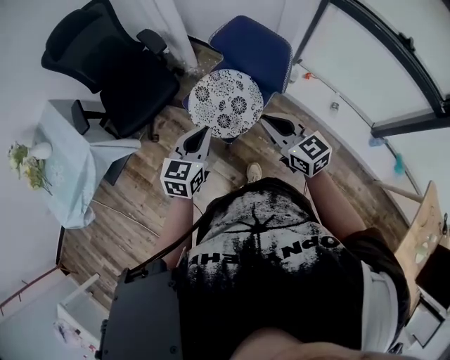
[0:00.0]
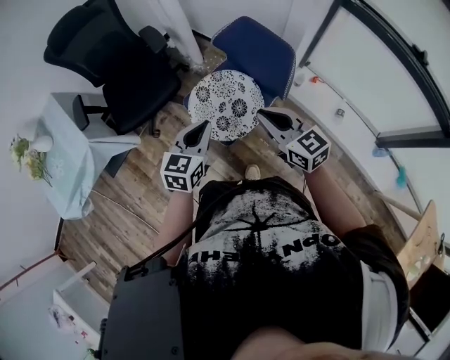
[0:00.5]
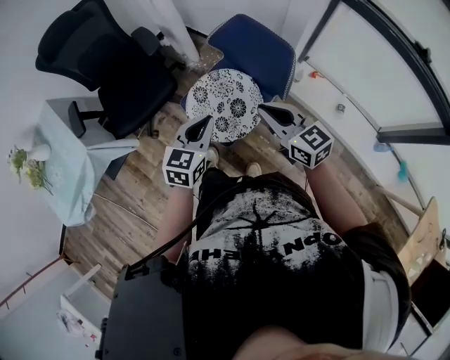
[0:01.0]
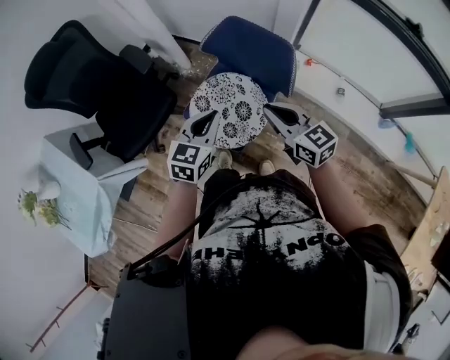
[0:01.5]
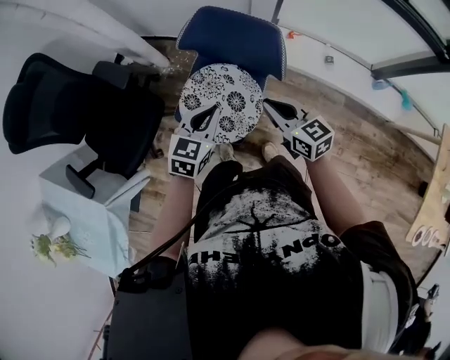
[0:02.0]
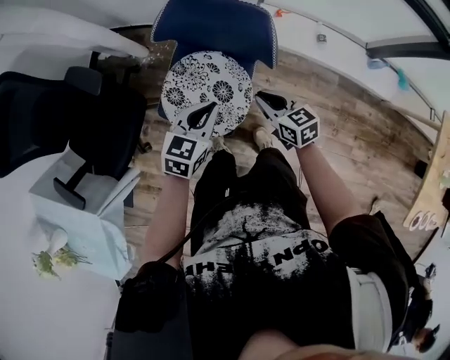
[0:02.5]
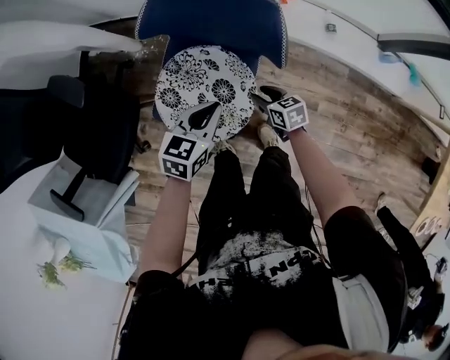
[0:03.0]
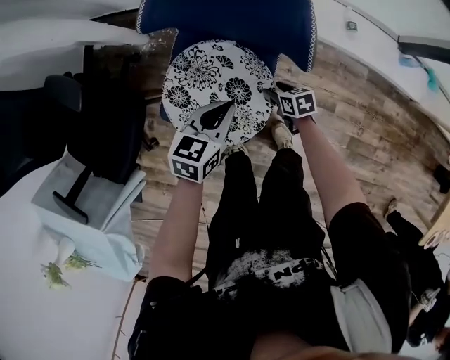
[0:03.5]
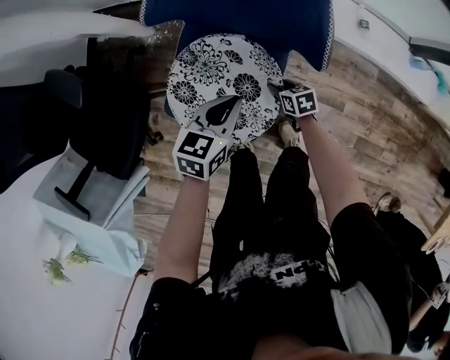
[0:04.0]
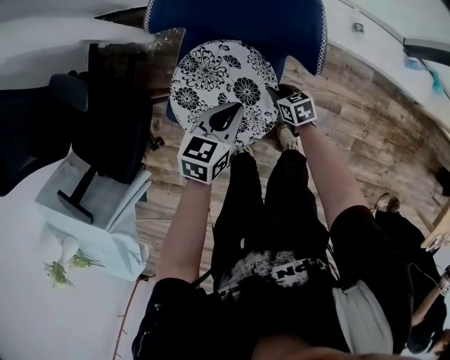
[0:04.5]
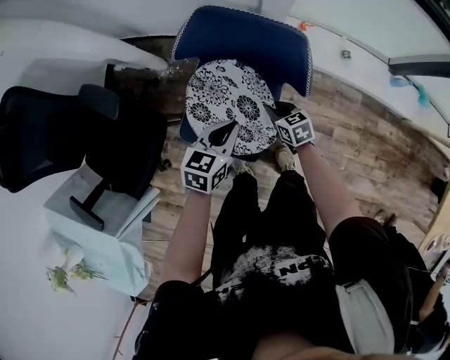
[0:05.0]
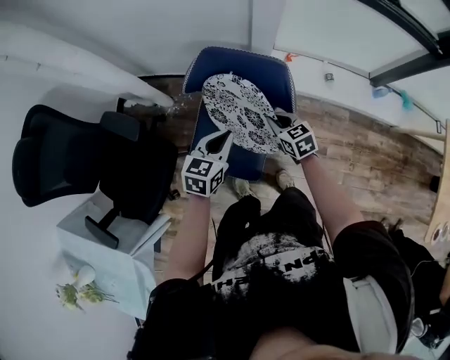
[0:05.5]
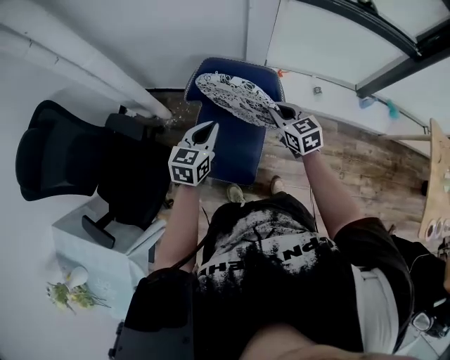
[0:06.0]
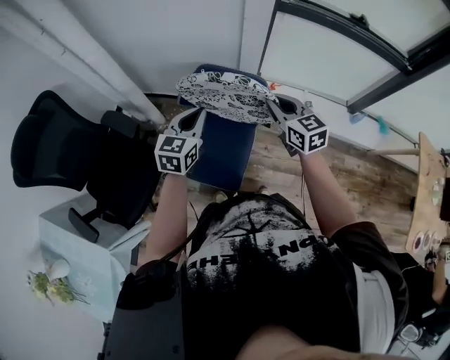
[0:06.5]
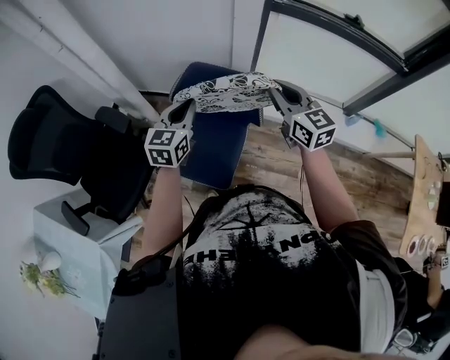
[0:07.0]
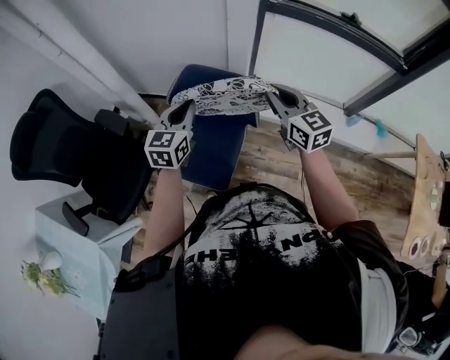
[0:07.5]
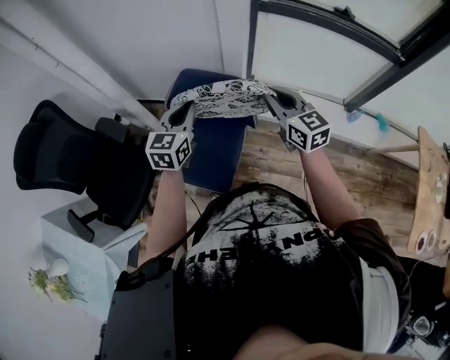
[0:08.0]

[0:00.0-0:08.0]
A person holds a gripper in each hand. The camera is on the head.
0:00.0 to 0:02.0: The right gripper changes place by approximately 15 cm, and turns by roughly 30 degrees. The left gripper moves about 20 cm, and changes its angle by about 30 degrees.
0:02.0 to 0:04.0: The right gripper is displaced downward by approximately 40 cm, tips its fingers downward by some 30 degrees, and opens its fingers. Meanwhile the left gripper is displaced downward by approximately 20 cm.
0:04.0 to 0:06.0: The left gripper moves upward, approximately 25 cm, while the right gripper shifts some 40 cm upward, rotates roughly 40 degrees, and closes.
0:06.0 to 0:08.0: The left gripper heads upward and to the right, covering approximately 10 cm; the right gripper is displaced upward and to the right by roughly 20 cm, and changes its angle by approximately 20 degrees.

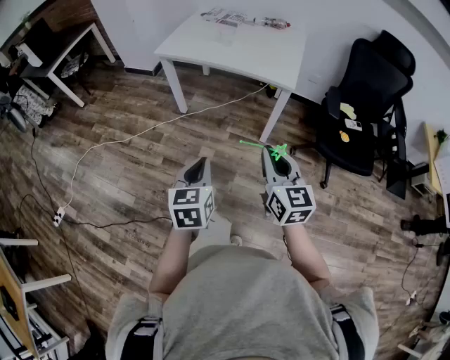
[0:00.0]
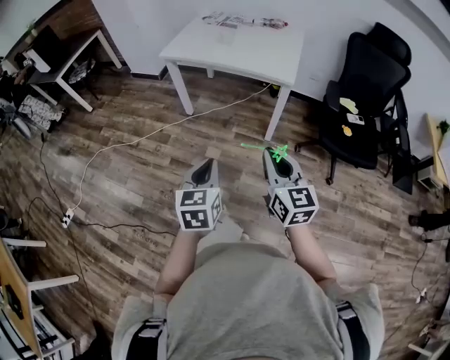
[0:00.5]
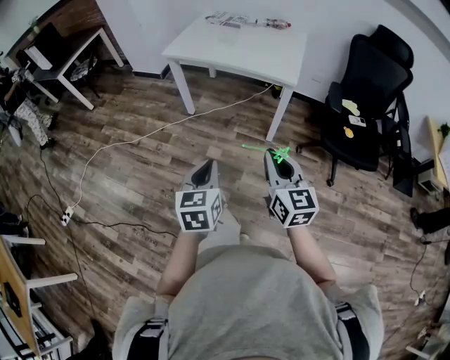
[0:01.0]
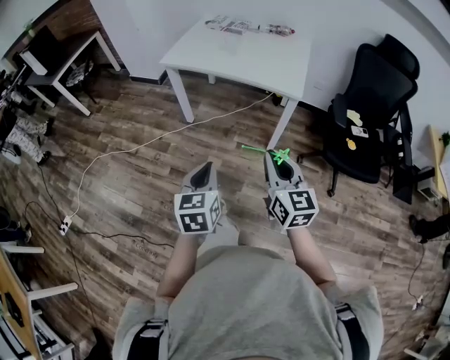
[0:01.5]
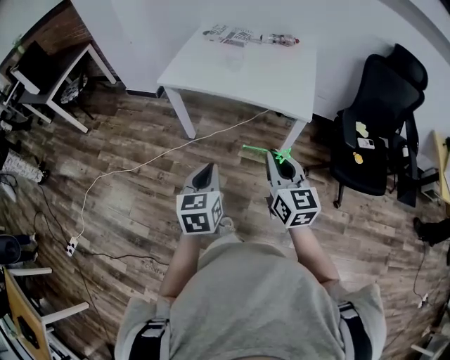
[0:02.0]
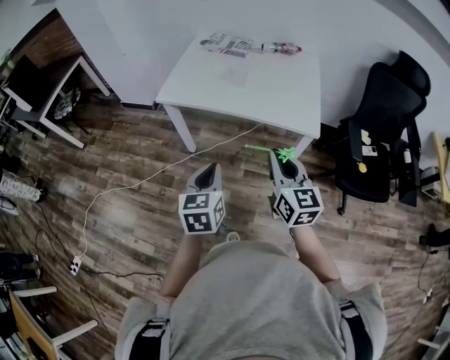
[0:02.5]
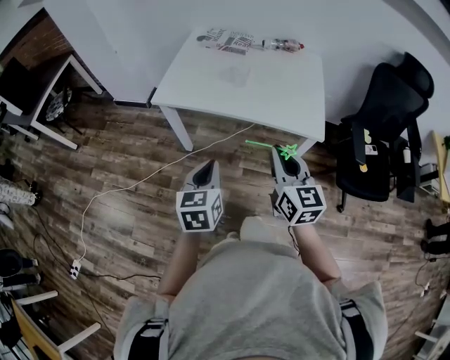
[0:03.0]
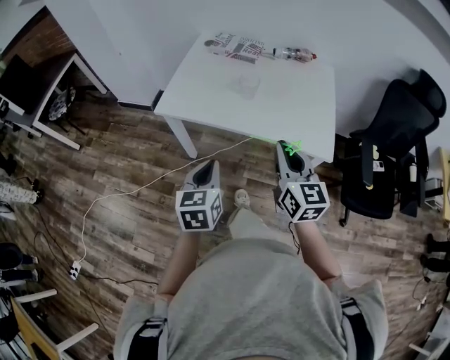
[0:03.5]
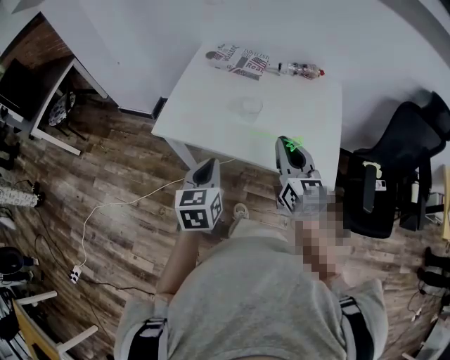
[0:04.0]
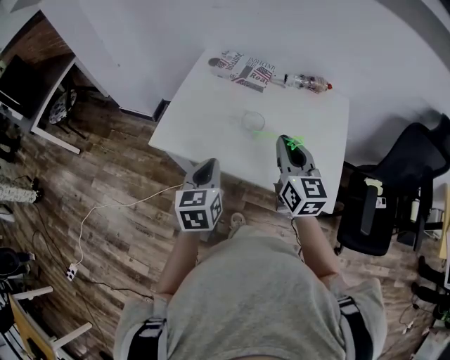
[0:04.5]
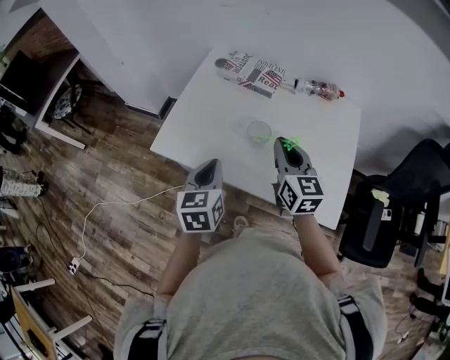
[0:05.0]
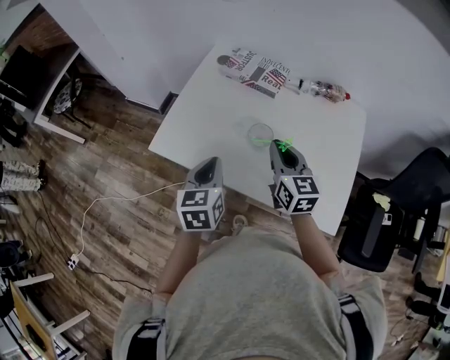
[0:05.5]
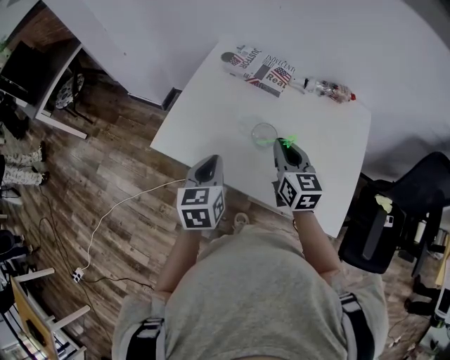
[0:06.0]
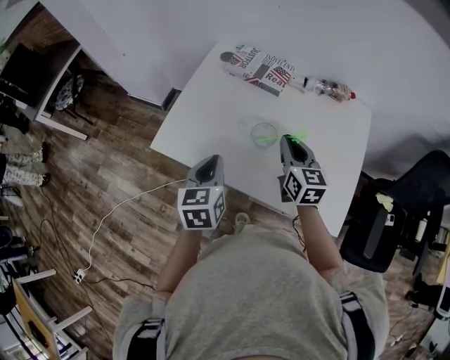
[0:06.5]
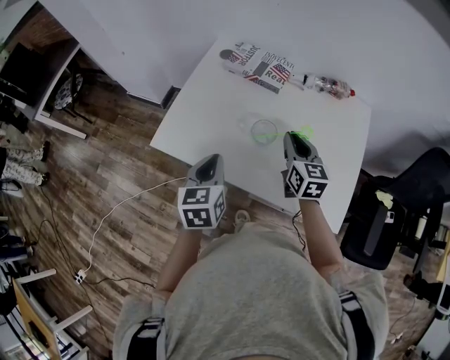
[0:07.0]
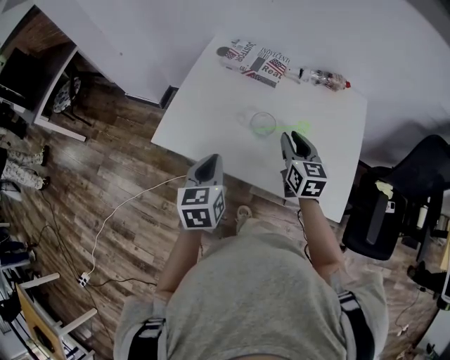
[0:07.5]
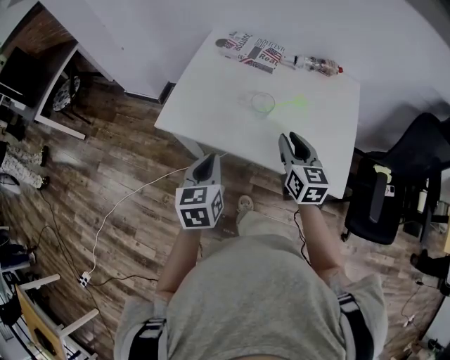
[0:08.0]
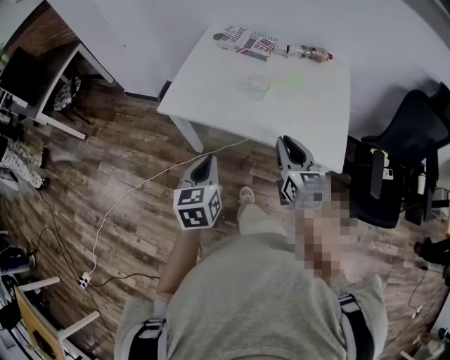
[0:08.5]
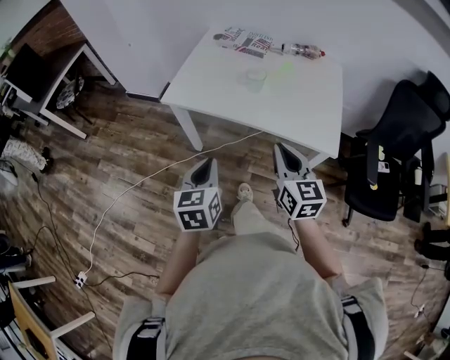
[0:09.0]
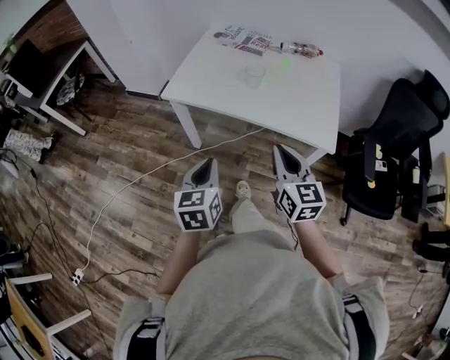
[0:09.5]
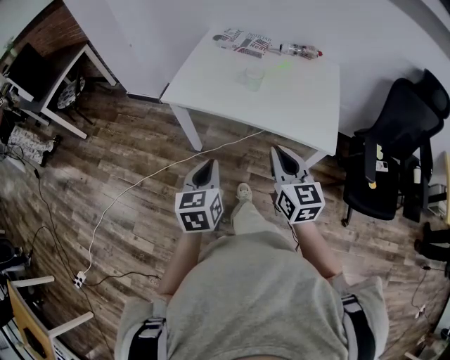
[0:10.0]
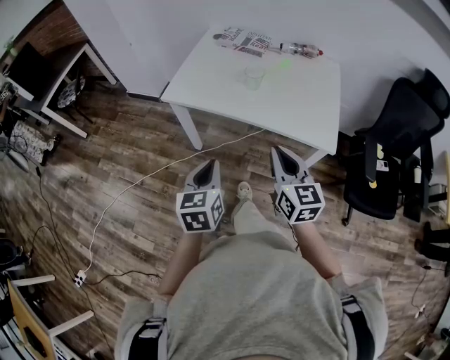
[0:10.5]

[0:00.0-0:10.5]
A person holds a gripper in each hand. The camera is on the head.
0:00.0 to 0:02.0: Both grippers travel together forward, approximately 20 cm.
0:02.0 to 0:04.0: Both grippers move forward, approximately 35 cm.
0:04.0 to 0:06.5: The left gripper moves forward, approximately 15 cm. The right gripper moves forward and downward, about 25 cm.
0:06.5 to 0:08.5: The two grippers go about 25 cm backward.
0:08.5 to 0:10.5: Both grippers travel together backward, some 10 cm.

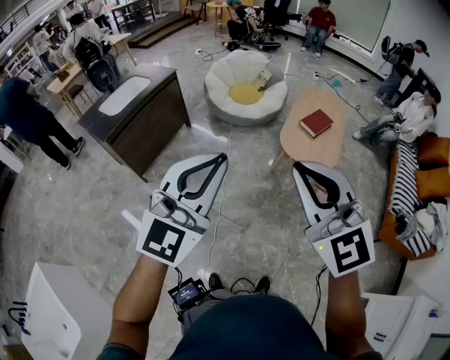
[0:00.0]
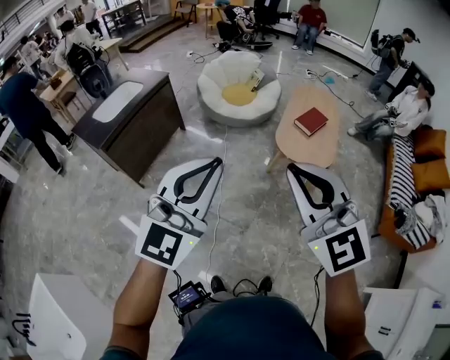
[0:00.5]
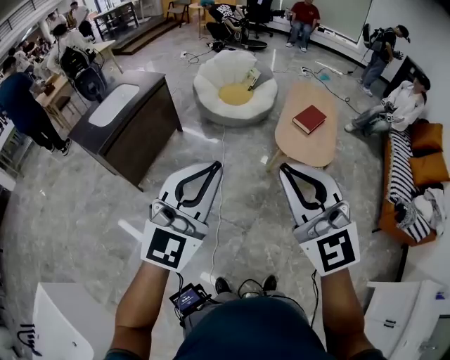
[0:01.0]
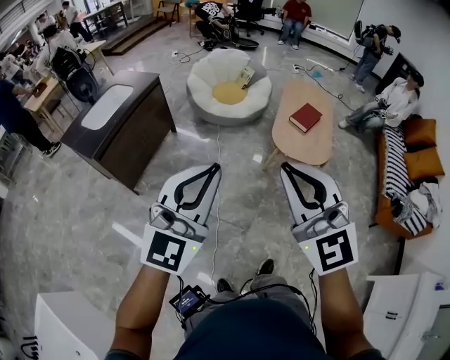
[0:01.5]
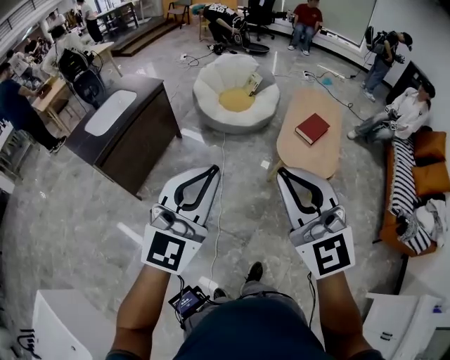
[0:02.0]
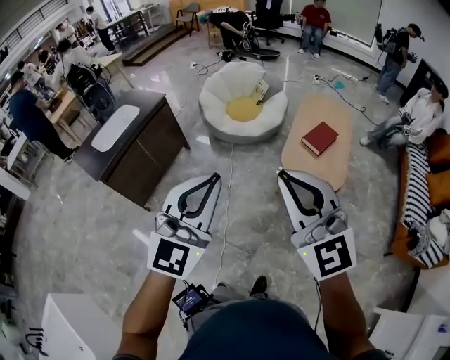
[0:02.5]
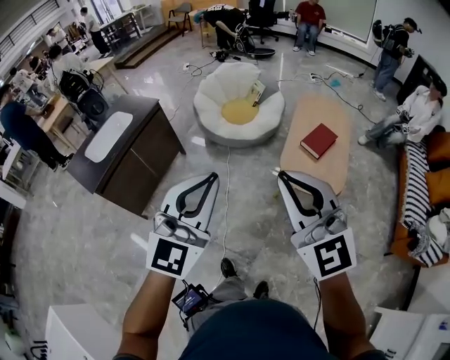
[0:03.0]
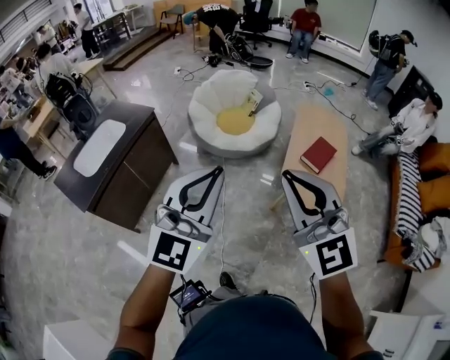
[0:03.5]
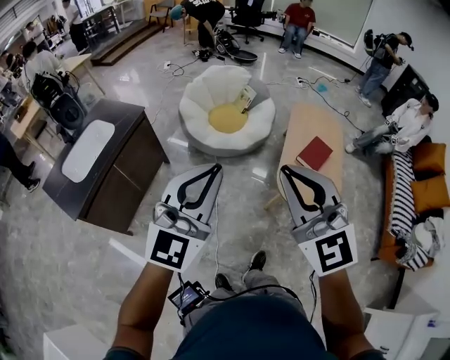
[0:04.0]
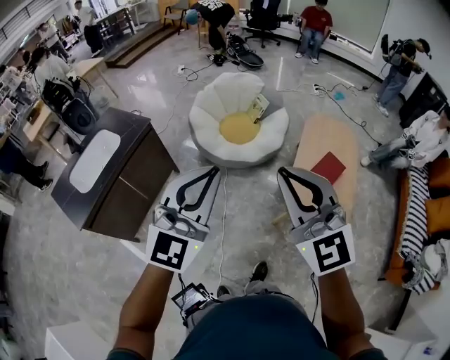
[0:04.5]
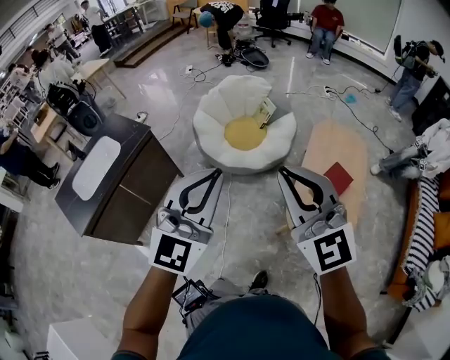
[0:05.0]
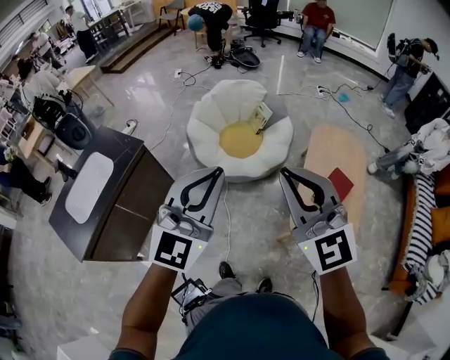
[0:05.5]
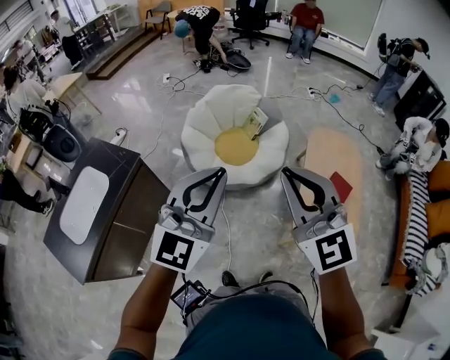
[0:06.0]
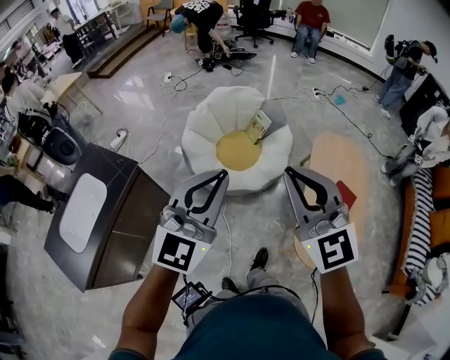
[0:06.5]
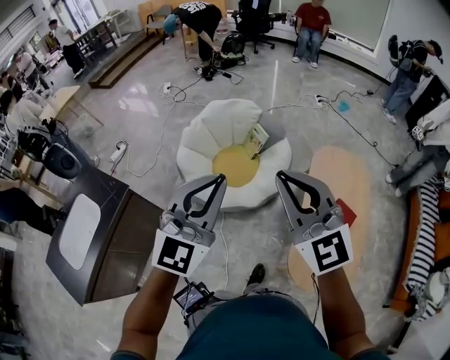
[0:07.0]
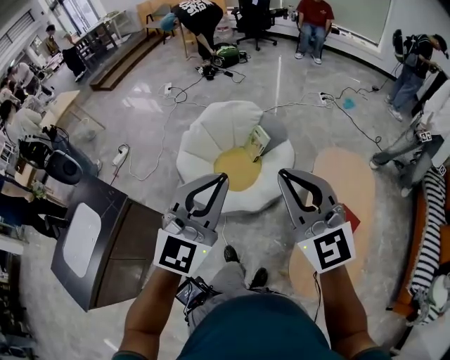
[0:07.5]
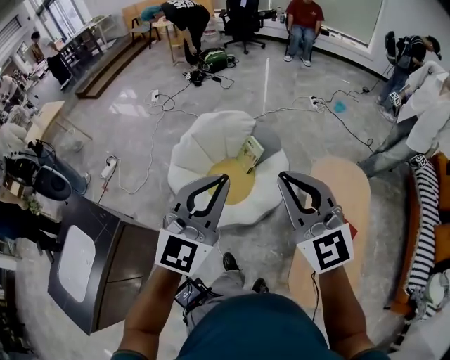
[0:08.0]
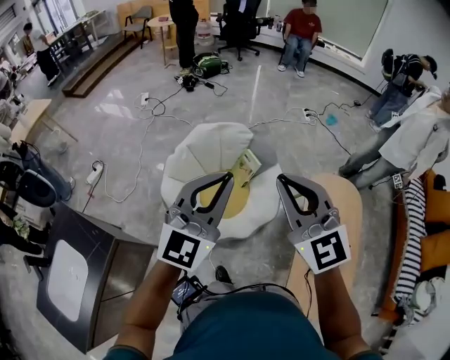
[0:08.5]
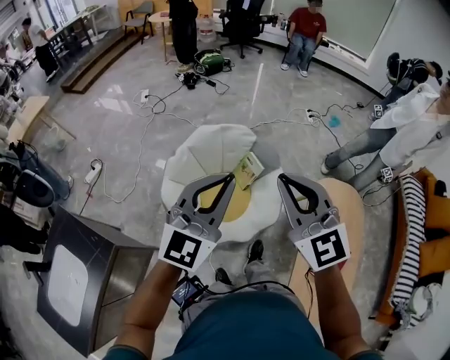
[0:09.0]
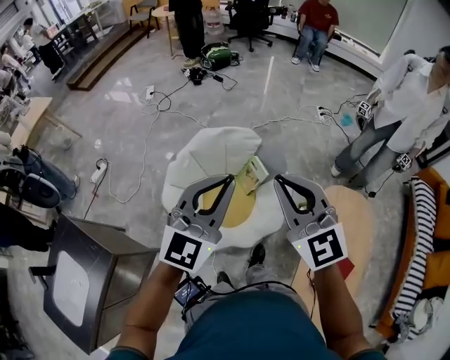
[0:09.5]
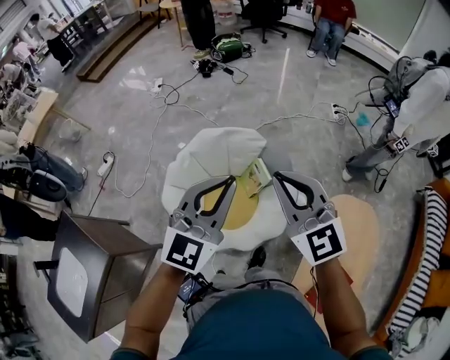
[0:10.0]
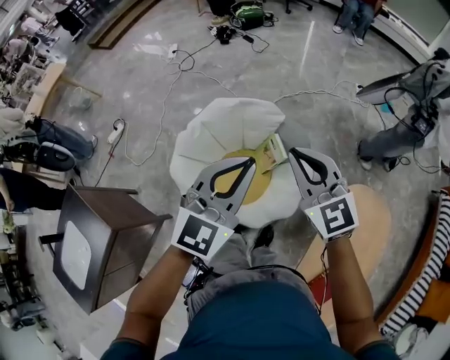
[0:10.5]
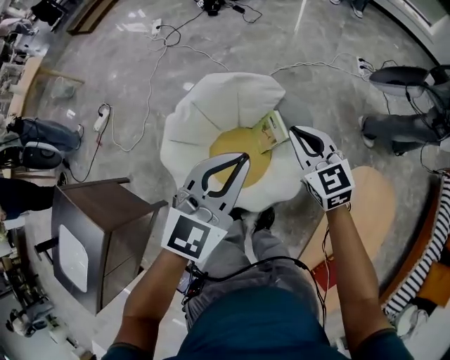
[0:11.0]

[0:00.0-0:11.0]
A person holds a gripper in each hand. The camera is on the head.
0:00.0 to 0:02.0: Both grippers move forward, about 10 cm.
0:02.0 to 0:03.5: Both grippers move forward, some 25 cm.
0:03.5 to 0:05.5: Both grippers travel together forward, some 35 cm.
0:05.5 to 0:07.5: The grippers both shift forward by roughly 30 cm.
0:07.5 to 0:09.0: Both grippers travel together forward and to the left, approximately 25 cm.
0:09.0 to 0:11.0: The left gripper shifts roughly 30 cm forward, downward and to the right, and turns by some 20 degrees. The right gripper moves forward and downward, some 40 cm, and turns by approximately 30 degrees.
